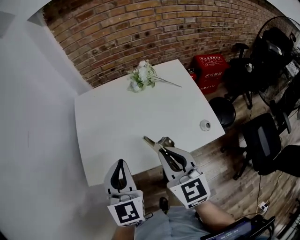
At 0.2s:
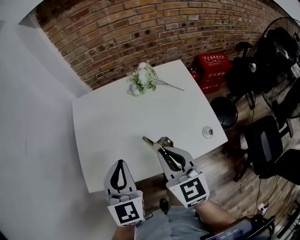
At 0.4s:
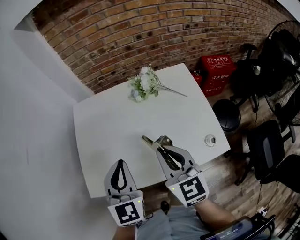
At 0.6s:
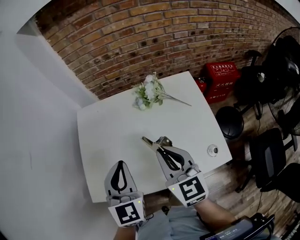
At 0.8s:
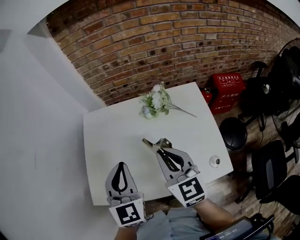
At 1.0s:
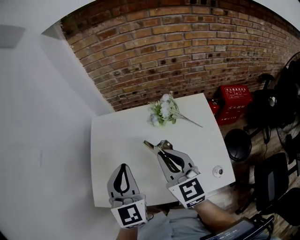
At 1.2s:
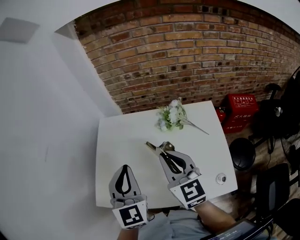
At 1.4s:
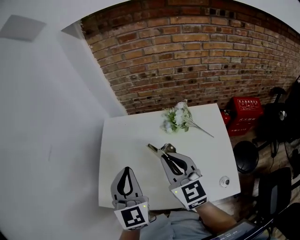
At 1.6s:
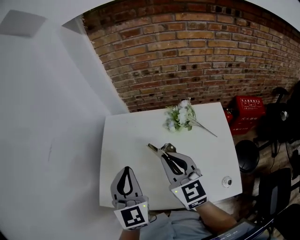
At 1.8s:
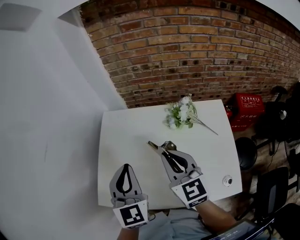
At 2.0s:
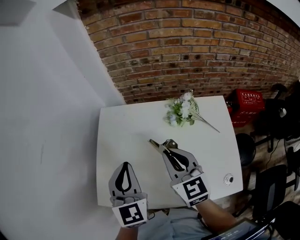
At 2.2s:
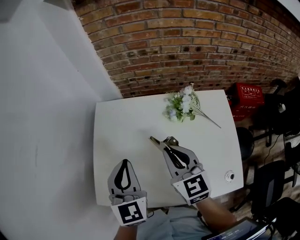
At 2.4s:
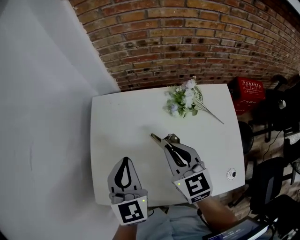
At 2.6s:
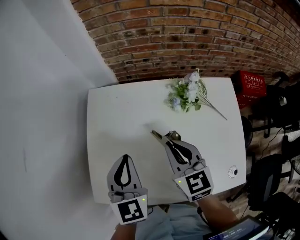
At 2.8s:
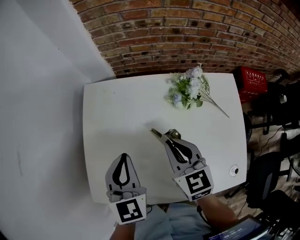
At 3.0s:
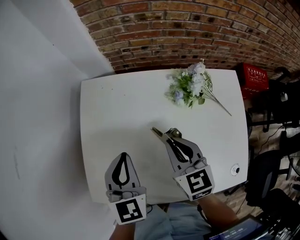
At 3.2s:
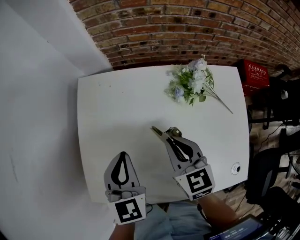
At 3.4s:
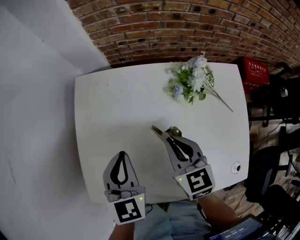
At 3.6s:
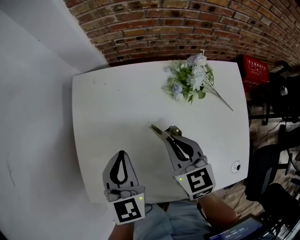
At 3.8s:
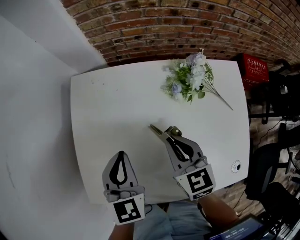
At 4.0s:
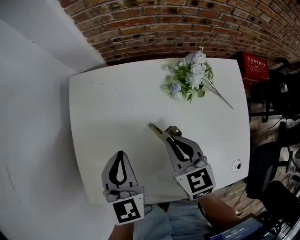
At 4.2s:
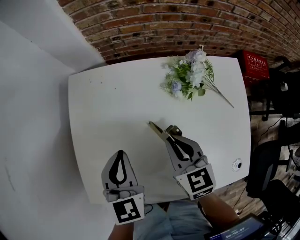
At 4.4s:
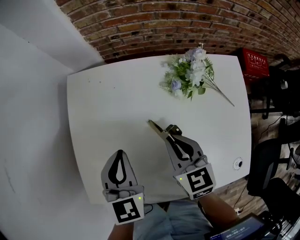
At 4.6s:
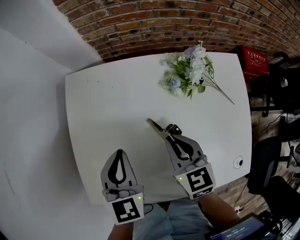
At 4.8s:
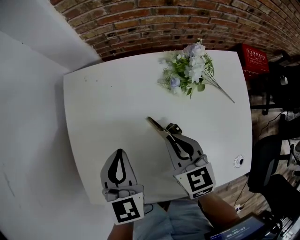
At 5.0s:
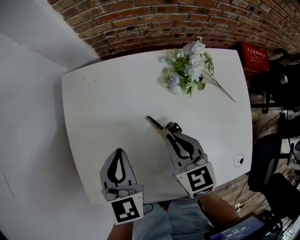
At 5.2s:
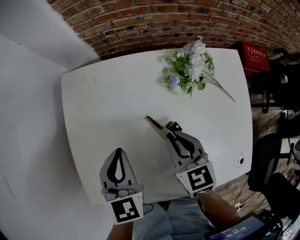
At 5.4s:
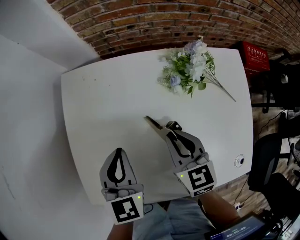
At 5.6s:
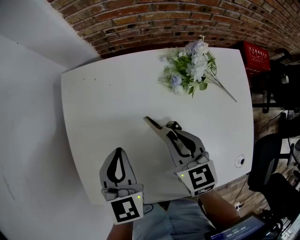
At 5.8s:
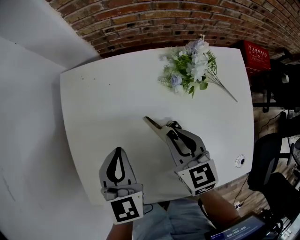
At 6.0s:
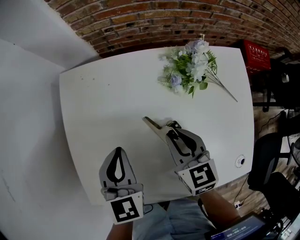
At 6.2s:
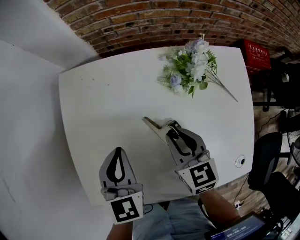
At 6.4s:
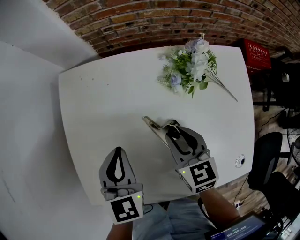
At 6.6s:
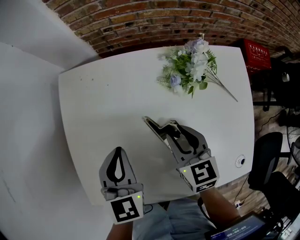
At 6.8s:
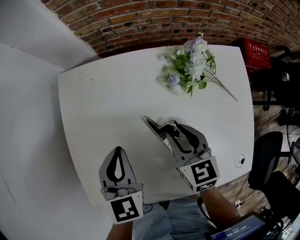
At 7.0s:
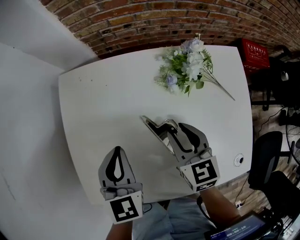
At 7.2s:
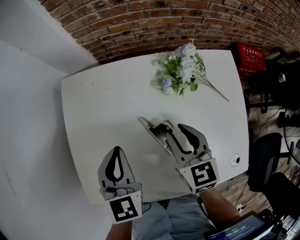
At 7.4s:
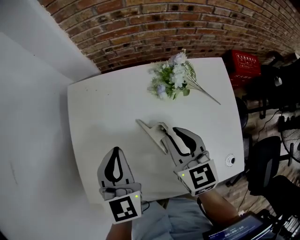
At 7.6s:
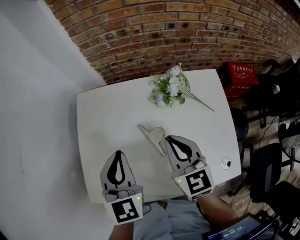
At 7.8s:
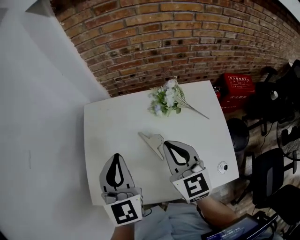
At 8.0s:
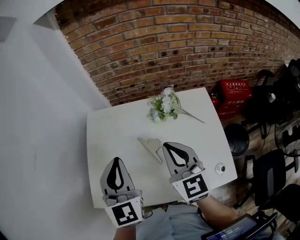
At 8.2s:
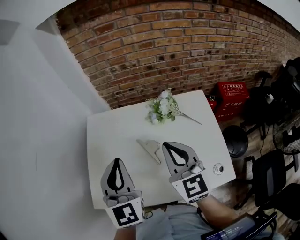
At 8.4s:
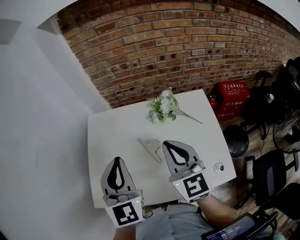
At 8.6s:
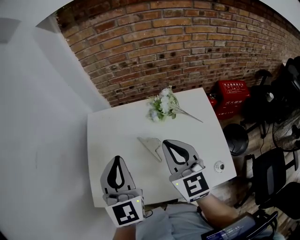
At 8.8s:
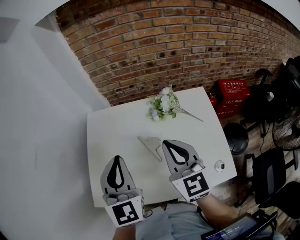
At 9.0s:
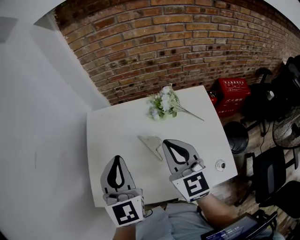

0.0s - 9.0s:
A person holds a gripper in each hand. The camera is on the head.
0.0s - 1.6s: The two grippers go some 15 cm forward.
1.6s - 3.0s: The two grippers go roughly 15 cm downward and forward. The right gripper swivels roughly 20 degrees.
3.0s - 4.4s: The grippers stay close to where they were, moving slightly.
4.4s - 6.0s: There are only small adjustments of the grippers.
6.0s - 7.6s: The grippers both shift upward by approximately 15 cm.
7.6s - 9.0s: Both grippers move upward, roughly 10 cm.

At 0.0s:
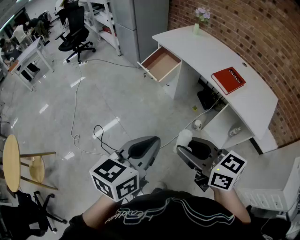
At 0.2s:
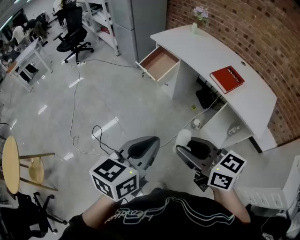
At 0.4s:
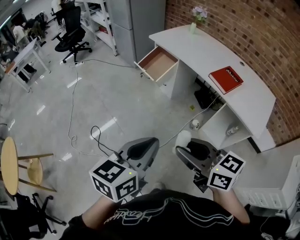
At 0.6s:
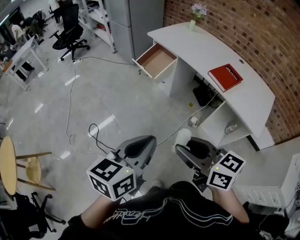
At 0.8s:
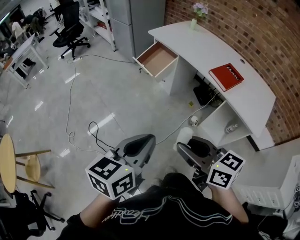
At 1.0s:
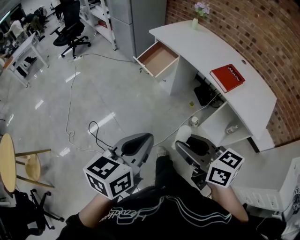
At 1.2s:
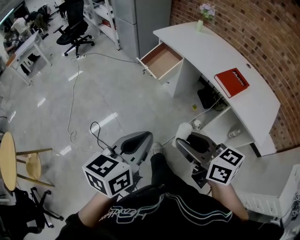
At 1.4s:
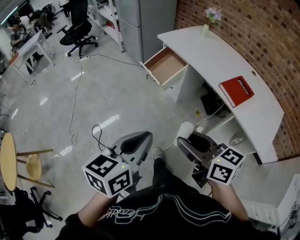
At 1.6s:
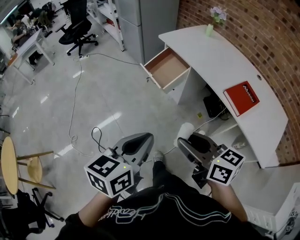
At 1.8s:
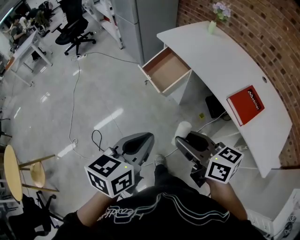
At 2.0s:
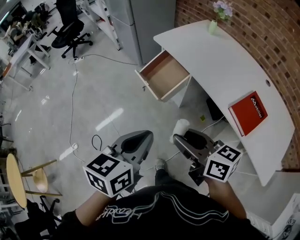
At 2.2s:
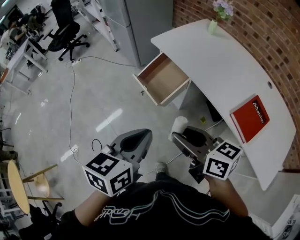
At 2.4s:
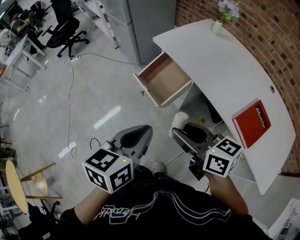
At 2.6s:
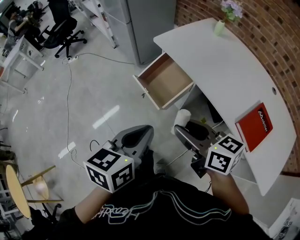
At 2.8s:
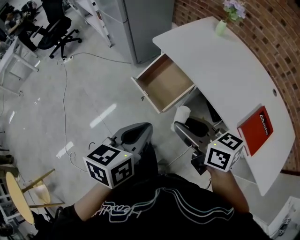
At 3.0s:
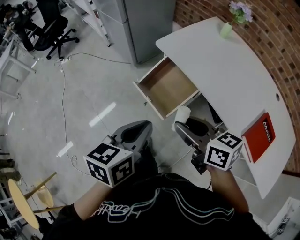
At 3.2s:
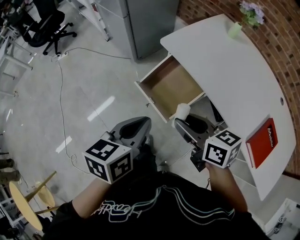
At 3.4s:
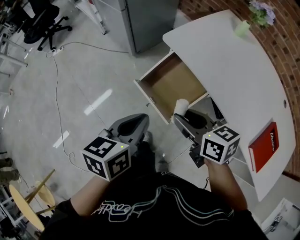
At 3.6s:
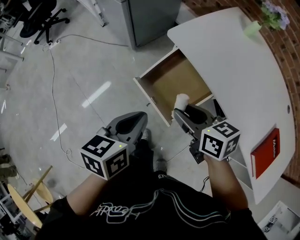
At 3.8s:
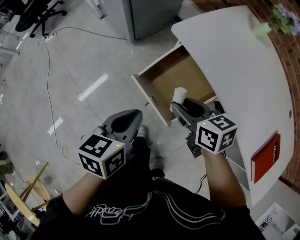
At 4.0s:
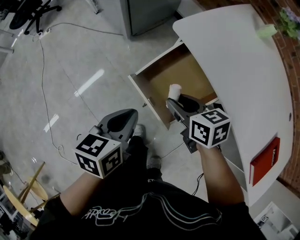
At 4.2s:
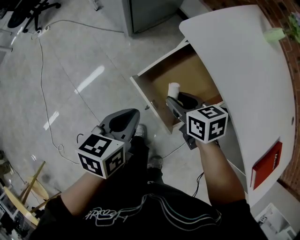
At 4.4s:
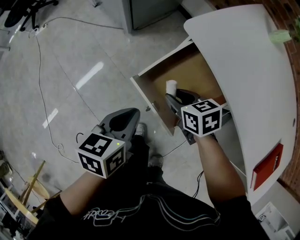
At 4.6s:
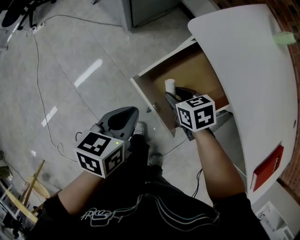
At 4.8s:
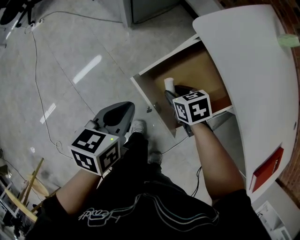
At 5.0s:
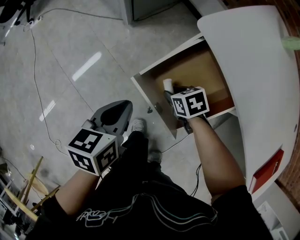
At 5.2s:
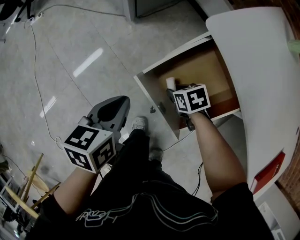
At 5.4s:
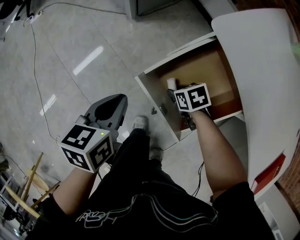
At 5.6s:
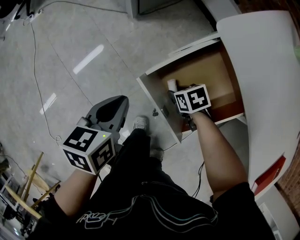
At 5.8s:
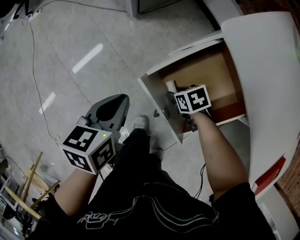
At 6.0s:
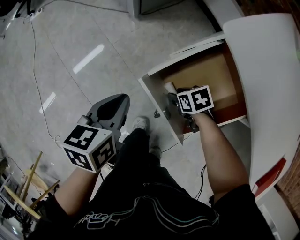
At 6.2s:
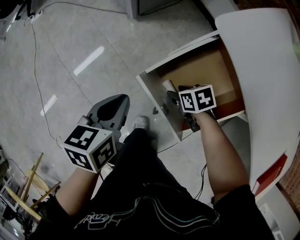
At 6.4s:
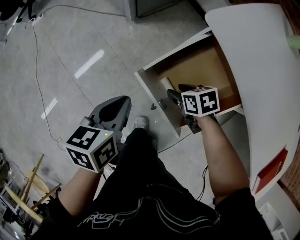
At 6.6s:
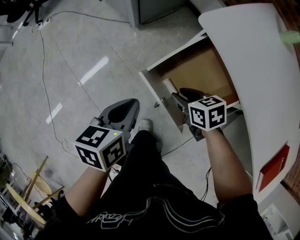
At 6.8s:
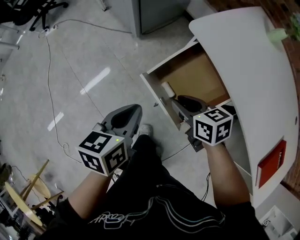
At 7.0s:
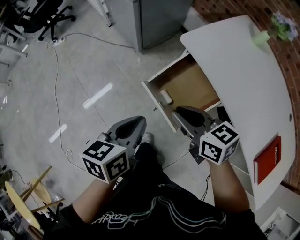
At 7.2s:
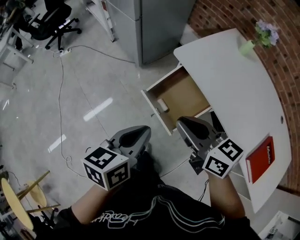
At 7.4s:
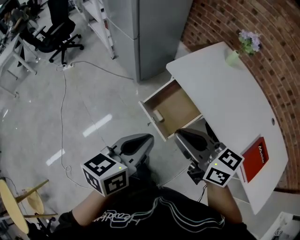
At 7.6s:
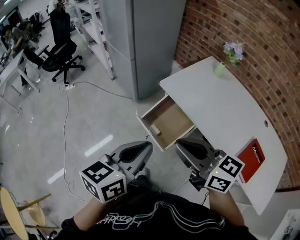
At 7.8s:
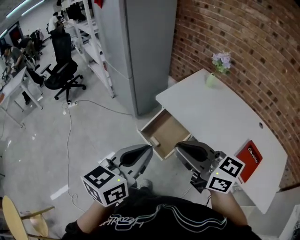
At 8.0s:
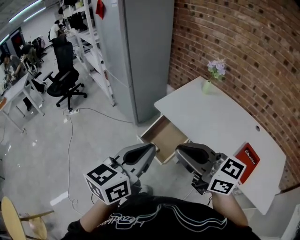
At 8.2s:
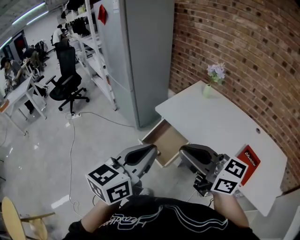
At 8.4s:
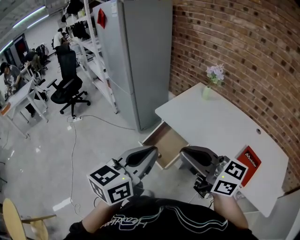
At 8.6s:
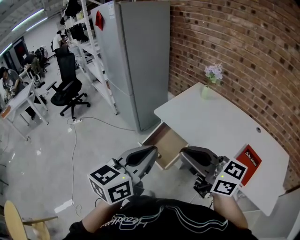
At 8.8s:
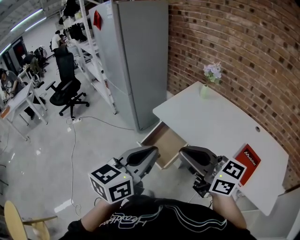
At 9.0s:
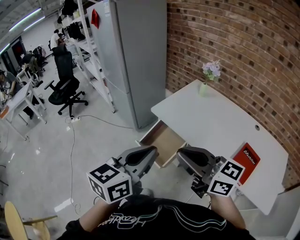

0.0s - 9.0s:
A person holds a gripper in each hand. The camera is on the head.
0.0s - 1.6s: The two grippers go some 20 cm forward.
1.6s - 3.0s: The pair of grippers is taken forward, approximately 40 cm.
3.0s - 4.4s: The grippers both shift downward and forward by roughly 35 cm. The right gripper rotates approximately 30 degrees.
4.4s - 6.0s: The left gripper changes place by approximately 10 cm. Meanwhile the right gripper travels downward by roughly 20 cm, and turns by roughly 20 degrees.
6.0s - 7.6s: Both grippers travel together upward, approximately 50 cm. The left gripper swivels roughly 30 degrees, while the right gripper points its fingers approximately 60 degrees further upward, and closes its fingers.
7.6s - 9.0s: The left gripper travels upward, to the right and backward by approximately 15 cm, while the right gripper travels upward, backward and to the right by some 15 cm.

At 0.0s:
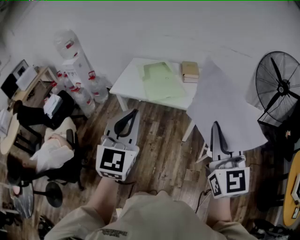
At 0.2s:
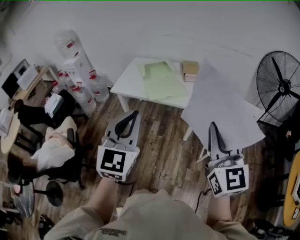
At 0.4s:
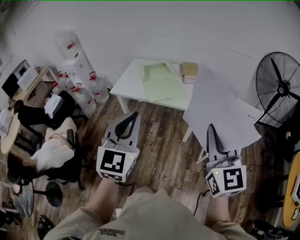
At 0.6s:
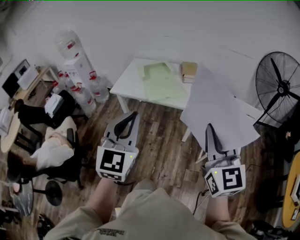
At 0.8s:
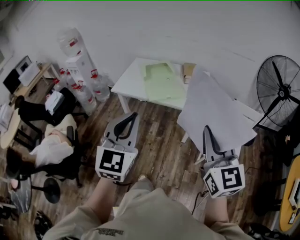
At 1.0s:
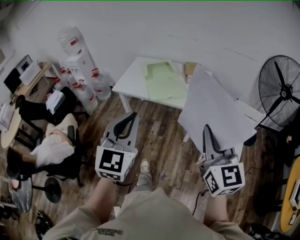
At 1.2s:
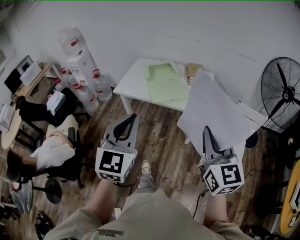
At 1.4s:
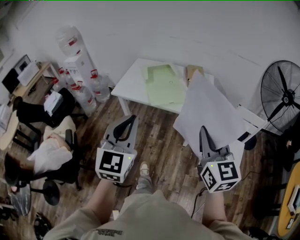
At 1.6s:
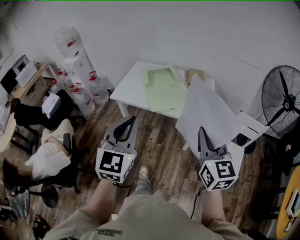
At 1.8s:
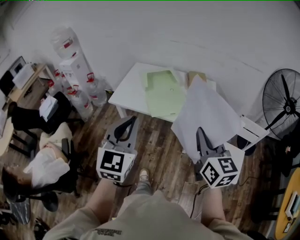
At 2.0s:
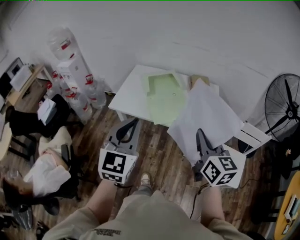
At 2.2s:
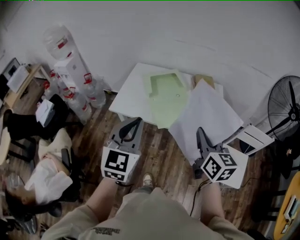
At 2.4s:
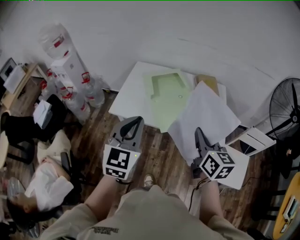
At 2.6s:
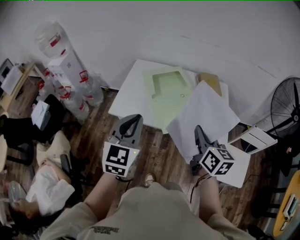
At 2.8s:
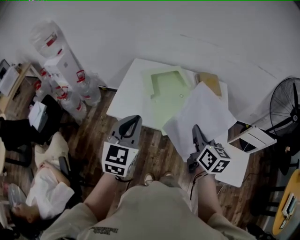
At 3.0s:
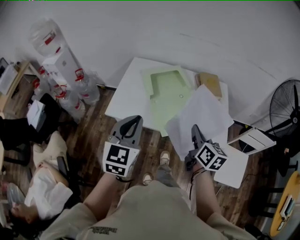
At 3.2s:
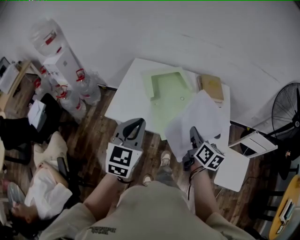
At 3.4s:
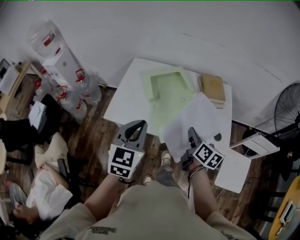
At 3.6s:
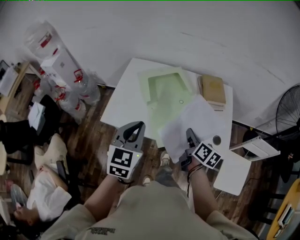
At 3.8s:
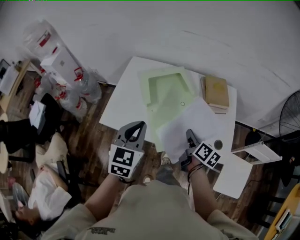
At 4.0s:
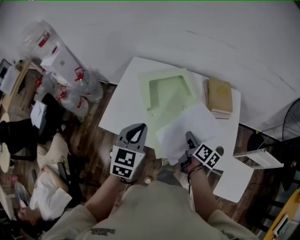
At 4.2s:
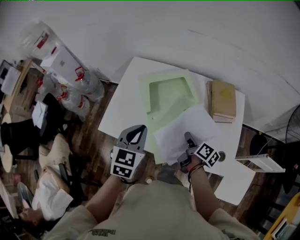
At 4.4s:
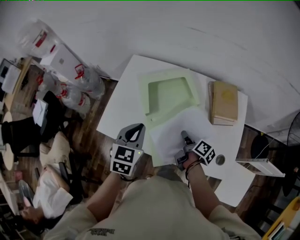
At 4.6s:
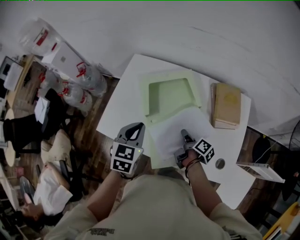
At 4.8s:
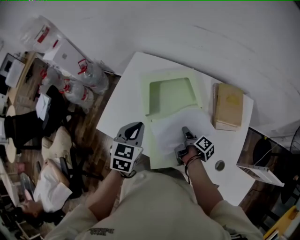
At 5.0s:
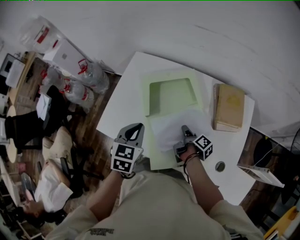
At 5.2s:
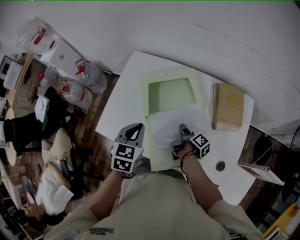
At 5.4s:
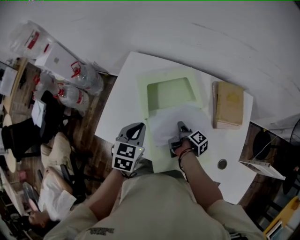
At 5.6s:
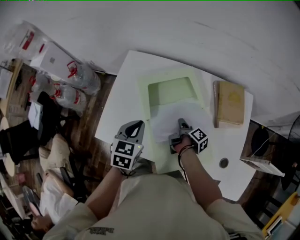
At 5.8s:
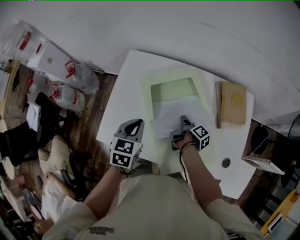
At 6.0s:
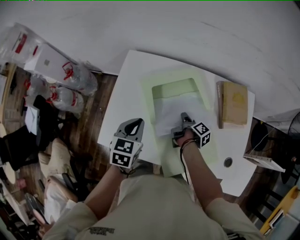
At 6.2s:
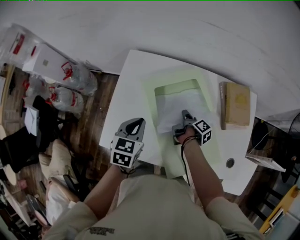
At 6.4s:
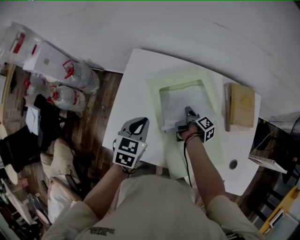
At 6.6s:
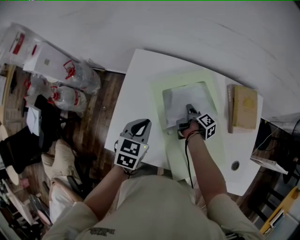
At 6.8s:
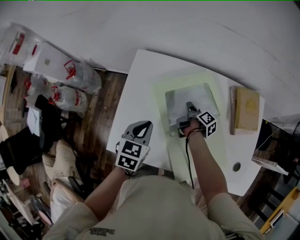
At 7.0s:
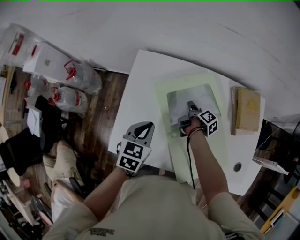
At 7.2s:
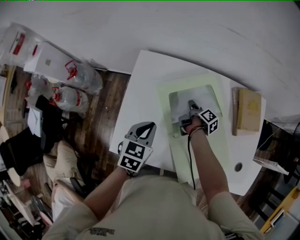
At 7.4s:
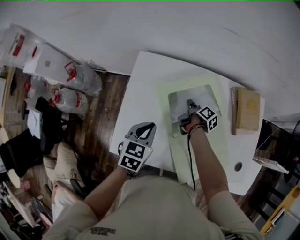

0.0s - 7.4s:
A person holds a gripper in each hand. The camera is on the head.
0.0s - 1.4s: The left gripper changes place by approximately 5 cm. Meanwhile the right gripper is displaced forward and downward by roughly 10 cm.
1.4s - 3.0s: The left gripper moves forward, roughly 35 cm, while the right gripper travels forward and downward by some 40 cm, and rotates roughly 40 degrees.
3.0s - 4.4s: Both grippers move forward and downward, some 30 cm. The left gripper turns by roughly 20 degrees. Meanwhile the right gripper rotates around the line of its fingers by some 50 degrees, clockwise from behind.
4.4s - 6.0s: The left gripper moves forward, downward and to the left, approximately 15 cm, while the right gripper goes about 15 cm forward and downward, and swivels about 30 degrees.
6.0s - 7.4s: The right gripper is displaced forward and to the left by some 10 cm.
